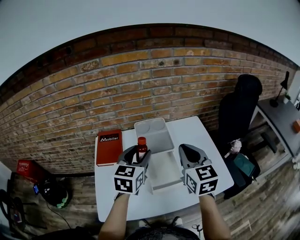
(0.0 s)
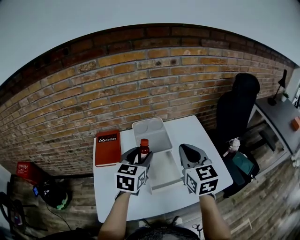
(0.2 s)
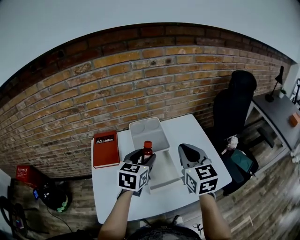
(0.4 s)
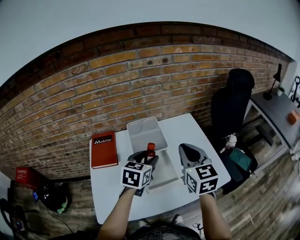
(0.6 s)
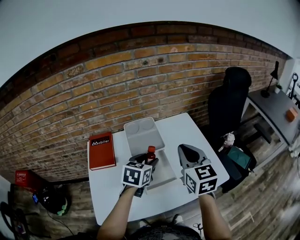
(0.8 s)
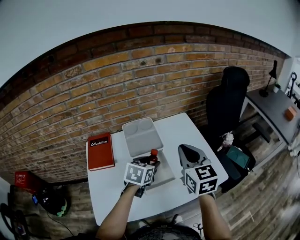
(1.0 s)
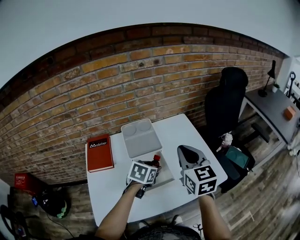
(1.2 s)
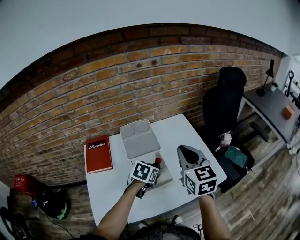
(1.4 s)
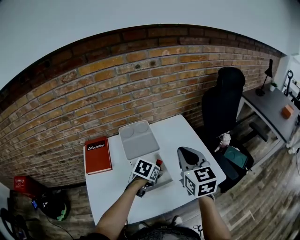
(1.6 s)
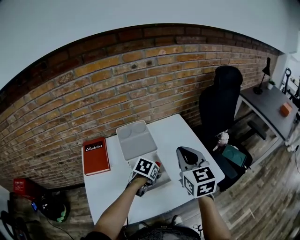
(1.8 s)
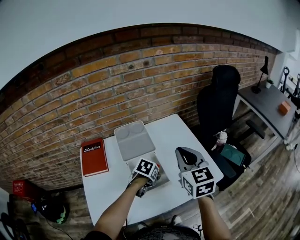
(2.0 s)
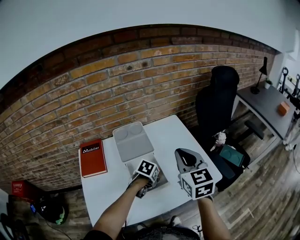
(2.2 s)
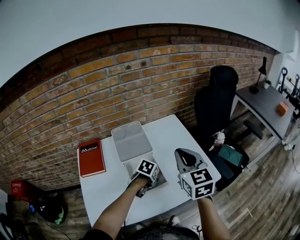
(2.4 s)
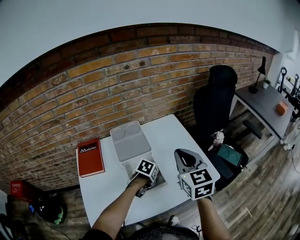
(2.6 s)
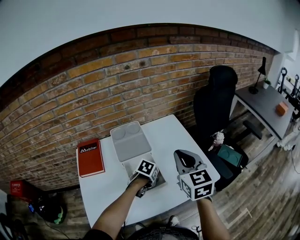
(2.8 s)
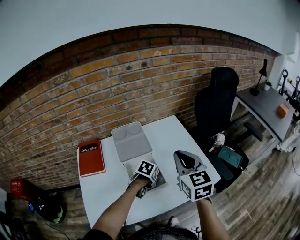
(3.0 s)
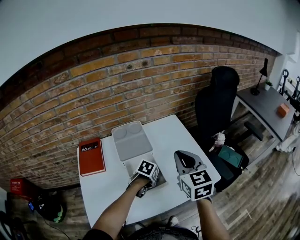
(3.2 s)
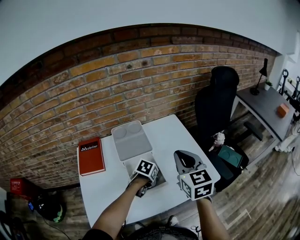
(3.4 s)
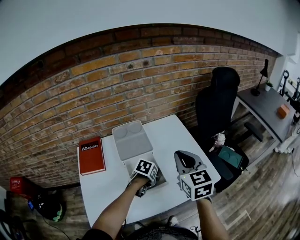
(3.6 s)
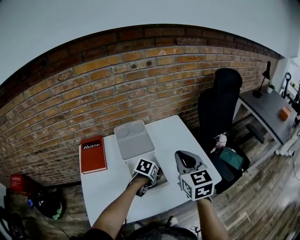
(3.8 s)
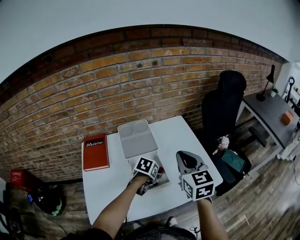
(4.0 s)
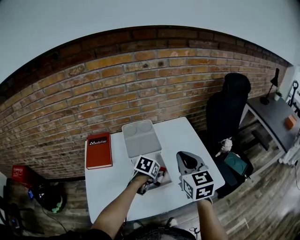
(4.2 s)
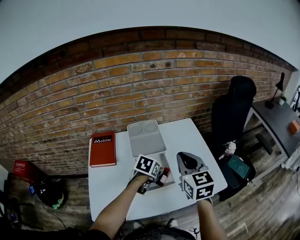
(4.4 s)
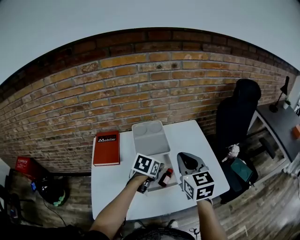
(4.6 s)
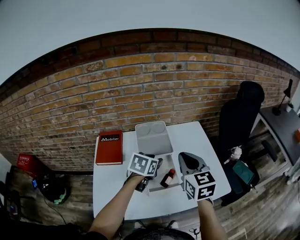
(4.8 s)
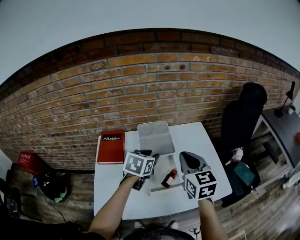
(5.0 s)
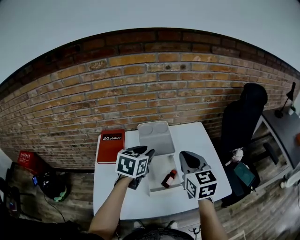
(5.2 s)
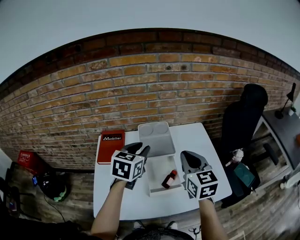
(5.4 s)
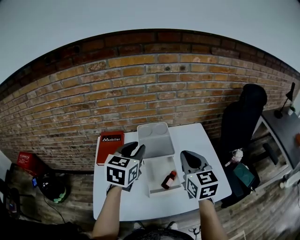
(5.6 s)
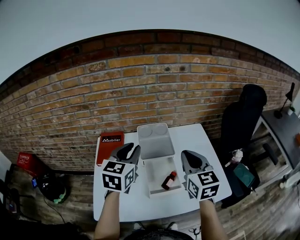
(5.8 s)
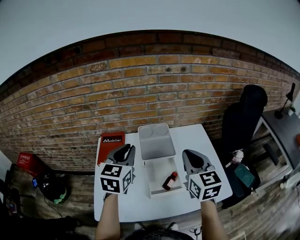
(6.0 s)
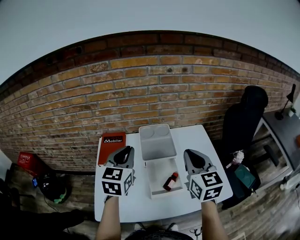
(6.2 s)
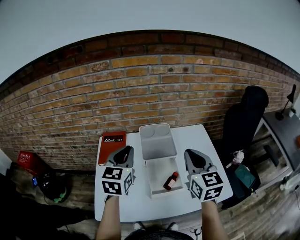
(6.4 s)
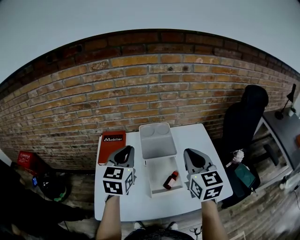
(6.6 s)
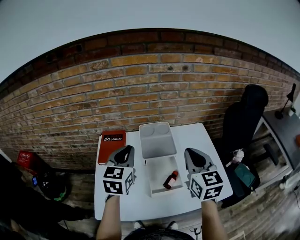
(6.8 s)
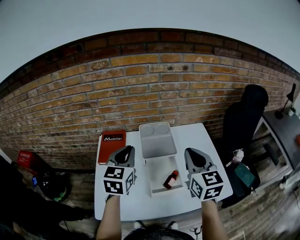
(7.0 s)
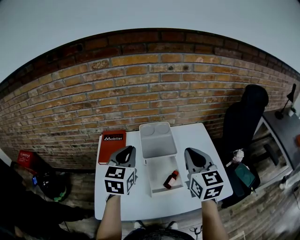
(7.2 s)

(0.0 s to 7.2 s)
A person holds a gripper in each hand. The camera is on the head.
0.0 s - 1.4 s: The left gripper travels downward and to the right by roughly 20 cm, and tips its fingers downward by some 30 degrees. Meanwhile the right gripper moves to the right, approximately 5 cm.
1.4 s - 2.8 s: The left gripper heads downward, covering roughly 10 cm, and rotates approximately 20 degrees.
2.8 s - 4.4 s: The left gripper travels upward by approximately 5 cm.
4.4 s - 5.8 s: The left gripper goes approximately 25 cm upward and to the left, points its fingers roughly 40 degrees further upward, and closes.
5.8 s - 7.2 s: The grippers stay close to where they were, moving slightly.

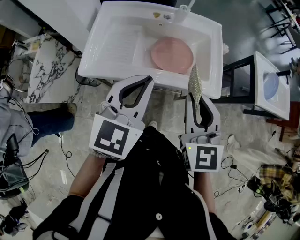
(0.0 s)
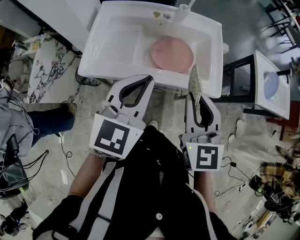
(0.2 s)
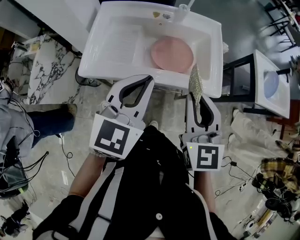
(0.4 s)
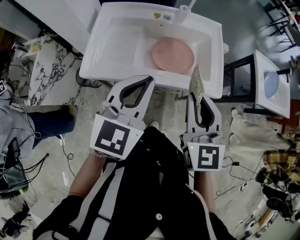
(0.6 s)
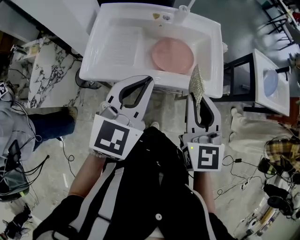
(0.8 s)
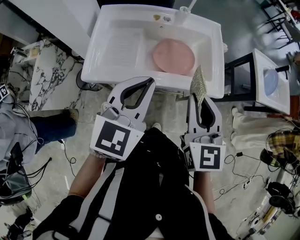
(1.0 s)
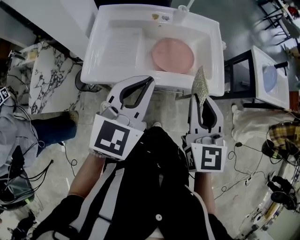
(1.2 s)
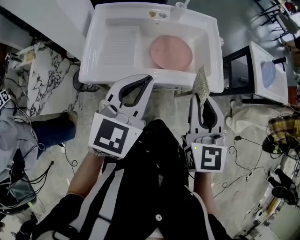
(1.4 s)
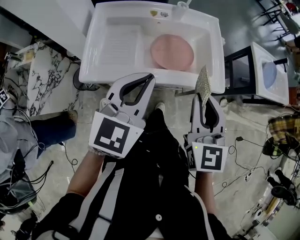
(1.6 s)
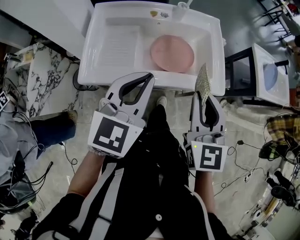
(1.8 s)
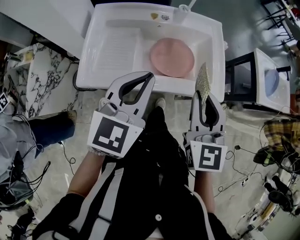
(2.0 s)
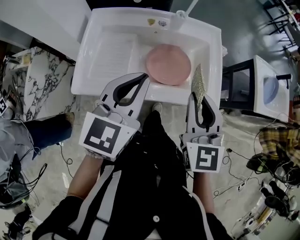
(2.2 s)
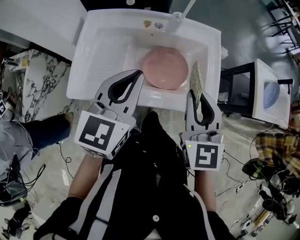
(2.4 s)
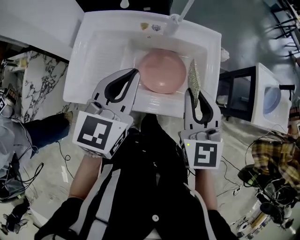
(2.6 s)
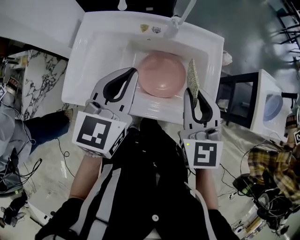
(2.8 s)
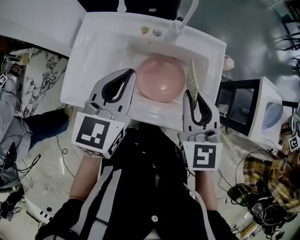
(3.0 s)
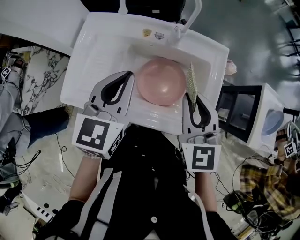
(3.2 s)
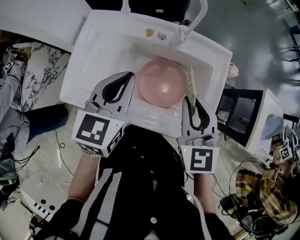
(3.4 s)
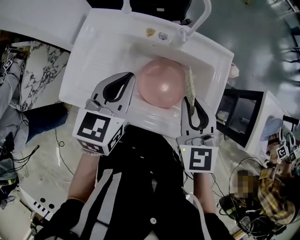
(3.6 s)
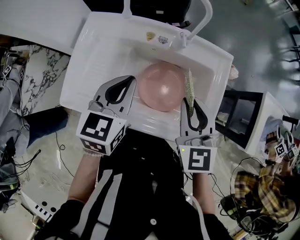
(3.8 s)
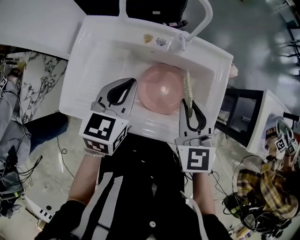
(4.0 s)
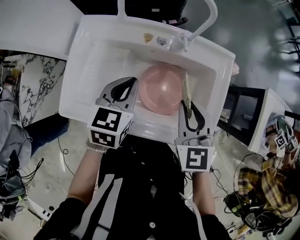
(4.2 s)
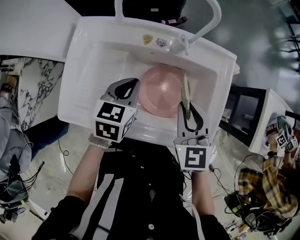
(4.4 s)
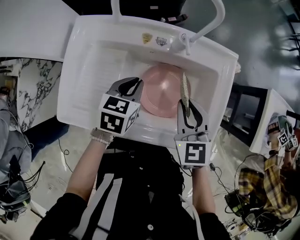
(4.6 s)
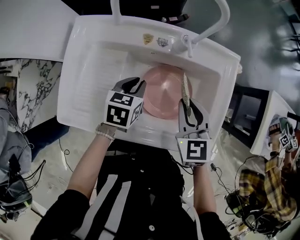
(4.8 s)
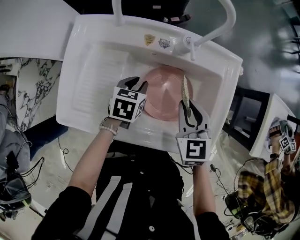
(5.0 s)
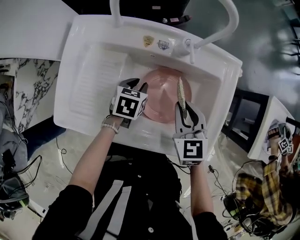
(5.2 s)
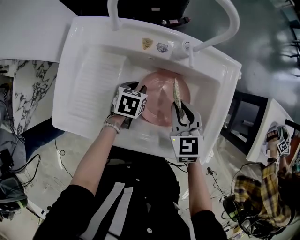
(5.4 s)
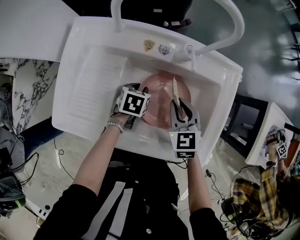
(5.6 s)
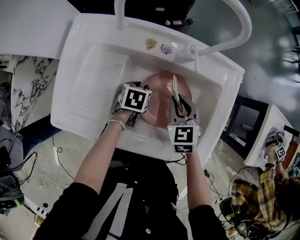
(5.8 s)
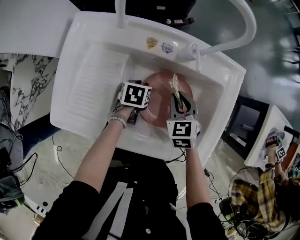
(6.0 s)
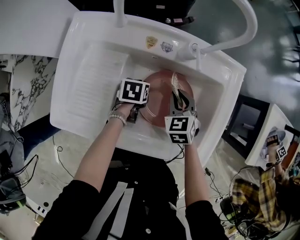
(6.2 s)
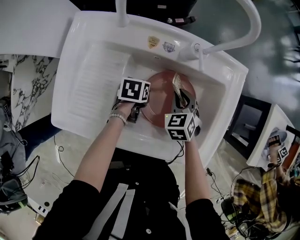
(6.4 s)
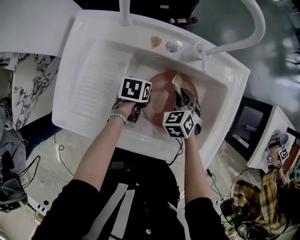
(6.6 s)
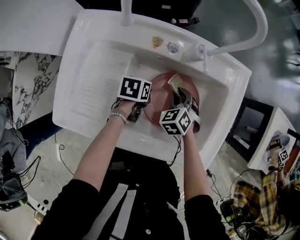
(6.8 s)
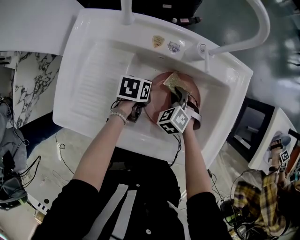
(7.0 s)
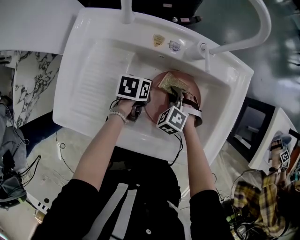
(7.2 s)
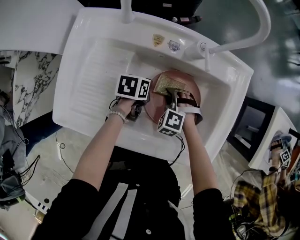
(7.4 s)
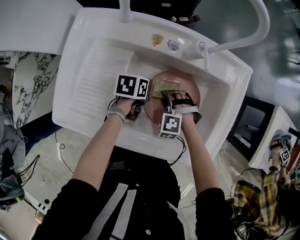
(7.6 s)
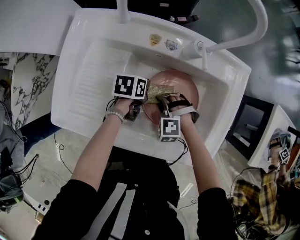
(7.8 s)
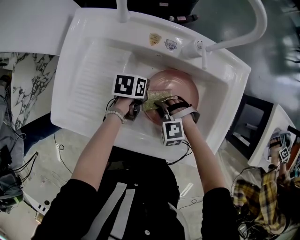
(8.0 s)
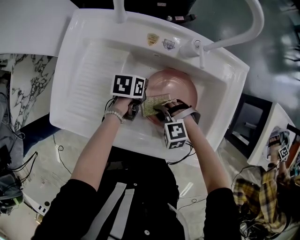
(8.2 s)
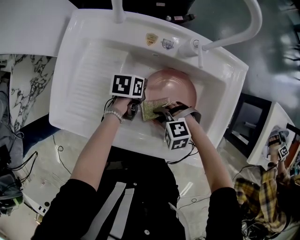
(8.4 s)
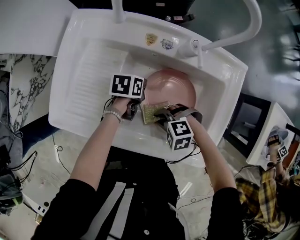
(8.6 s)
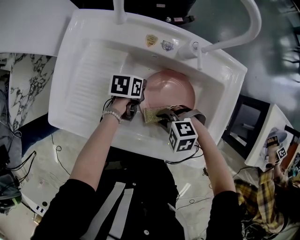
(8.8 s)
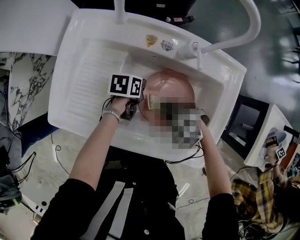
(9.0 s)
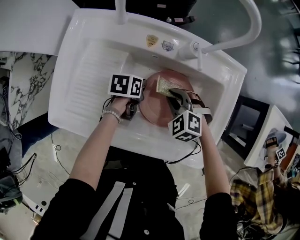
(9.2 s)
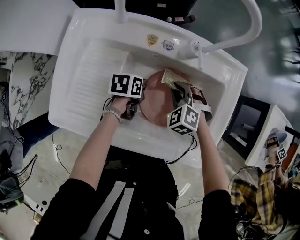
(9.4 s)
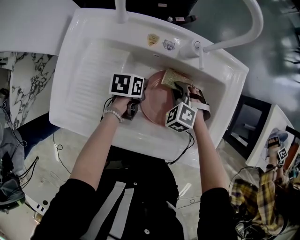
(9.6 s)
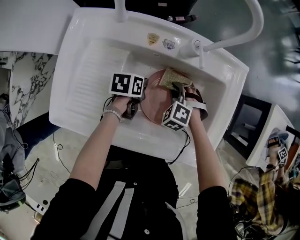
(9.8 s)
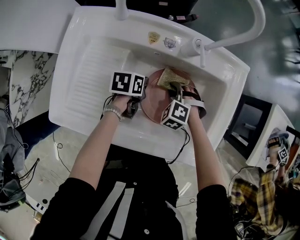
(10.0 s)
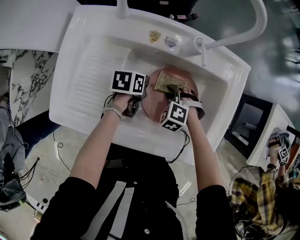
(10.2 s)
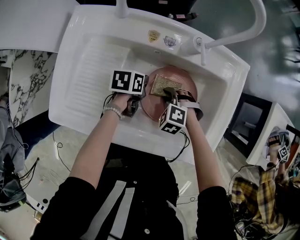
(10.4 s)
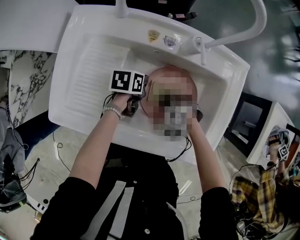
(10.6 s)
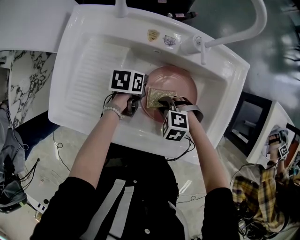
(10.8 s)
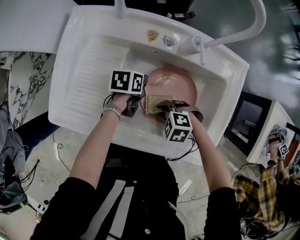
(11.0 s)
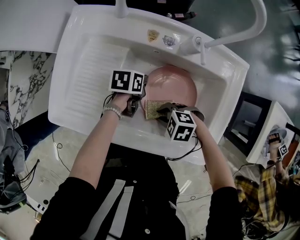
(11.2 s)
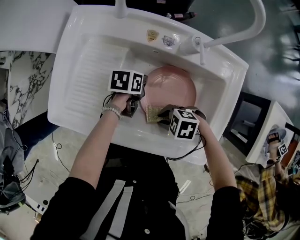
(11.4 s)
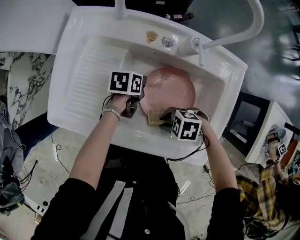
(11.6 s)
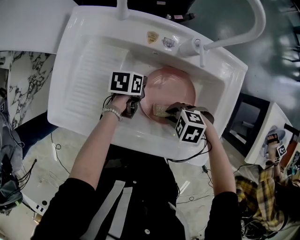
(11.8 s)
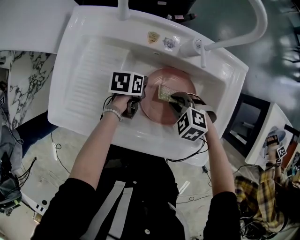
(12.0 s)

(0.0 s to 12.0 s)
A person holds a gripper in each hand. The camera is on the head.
0.0 s - 1.6 s: The grippers make only small movements.
1.6 s - 3.0 s: The grippers both shift forward by approximately 20 cm. The left gripper swivels approximately 20 degrees.
3.0 s - 4.4 s: The left gripper is displaced downward and forward by roughly 15 cm, and changes its angle by roughly 20 degrees; the right gripper moves downward, approximately 10 cm.
4.4 s - 6.0 s: Both grippers move downward, about 20 cm. The left gripper turns by roughly 30 degrees, and opens up.
6.0 s - 7.6 s: The right gripper shifts about 10 cm downward and backward, and rolls counterclockwise, seen from behind, by approximately 60 degrees.
7.6 s - 9.0 s: The right gripper is displaced upward by approximately 5 cm, and changes its angle by some 30 degrees.
9.0 s - 10.4 s: The right gripper is displaced downward by some 5 cm.
10.4 s - 12.0 s: The right gripper shifts about 5 cm upward.

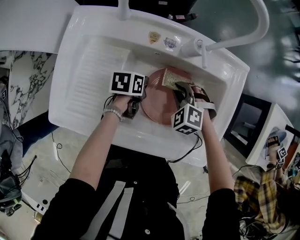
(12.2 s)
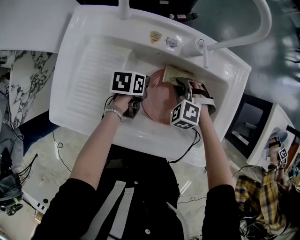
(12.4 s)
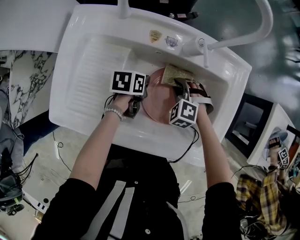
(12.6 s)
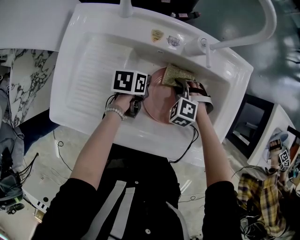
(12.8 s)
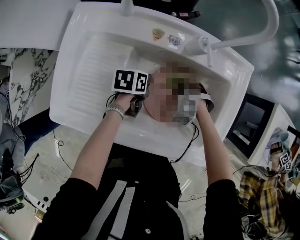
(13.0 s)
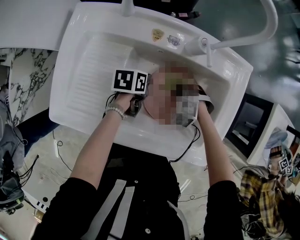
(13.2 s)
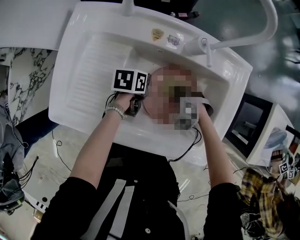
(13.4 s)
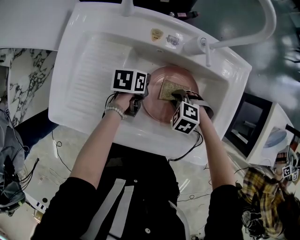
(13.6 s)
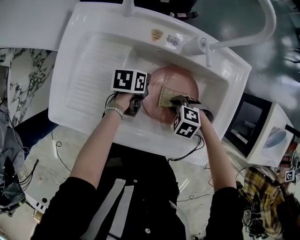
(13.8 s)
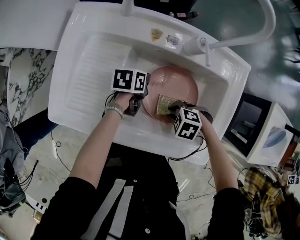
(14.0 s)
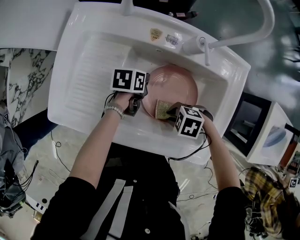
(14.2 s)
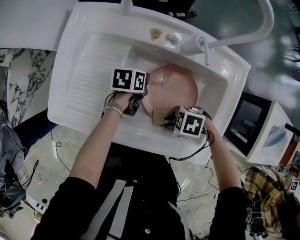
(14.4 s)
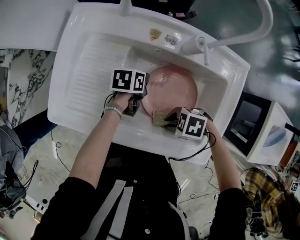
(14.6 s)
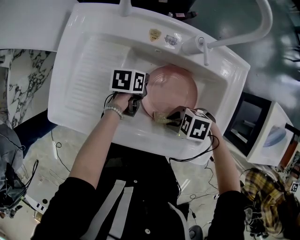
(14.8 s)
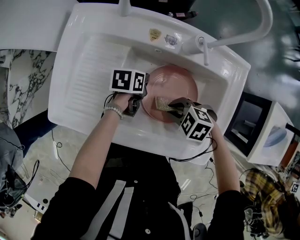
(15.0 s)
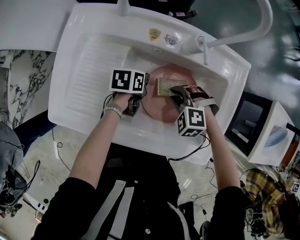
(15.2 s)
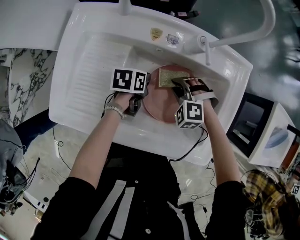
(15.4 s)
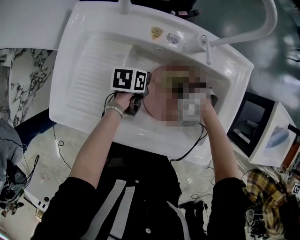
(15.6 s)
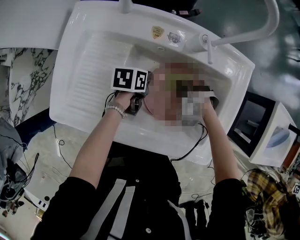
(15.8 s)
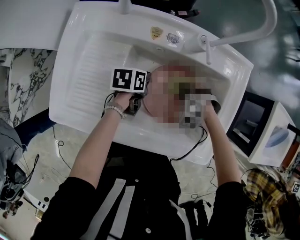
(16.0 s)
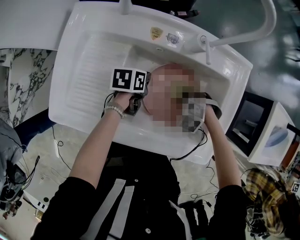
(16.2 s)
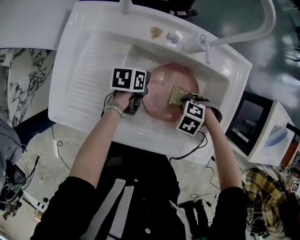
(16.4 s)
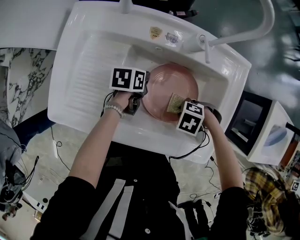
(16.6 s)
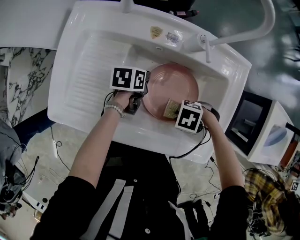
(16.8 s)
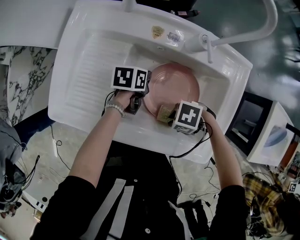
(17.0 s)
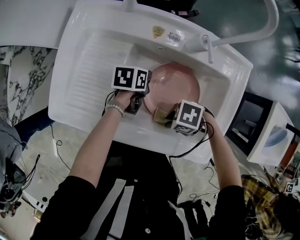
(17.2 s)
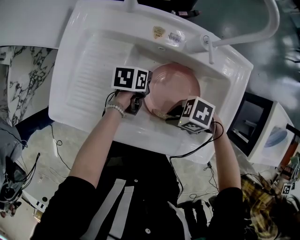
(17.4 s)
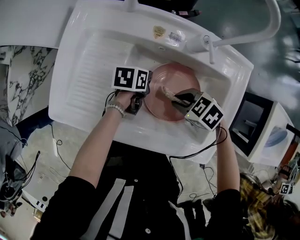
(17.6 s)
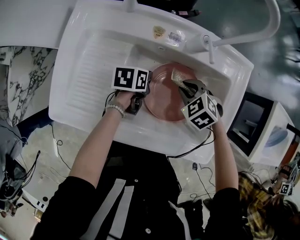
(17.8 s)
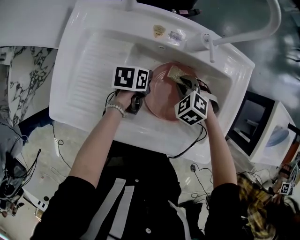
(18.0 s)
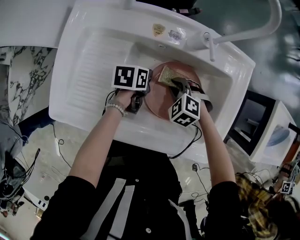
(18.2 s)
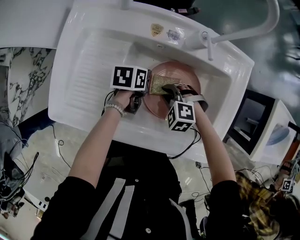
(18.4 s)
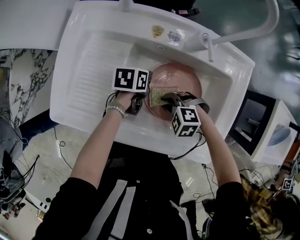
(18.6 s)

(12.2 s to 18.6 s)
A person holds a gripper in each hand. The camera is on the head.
12.2 s - 13.8 s: The right gripper changes place by roughly 10 cm, and rotates about 30 degrees.
13.8 s - 15.4 s: The right gripper ends up about 10 cm from where it was, and swivels about 30 degrees.
15.4 s - 17.0 s: The right gripper shifts by roughly 15 cm, and turns by about 60 degrees.
17.0 s - 18.6 s: The right gripper swivels roughly 40 degrees.
